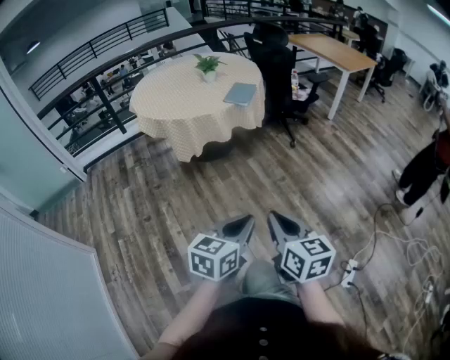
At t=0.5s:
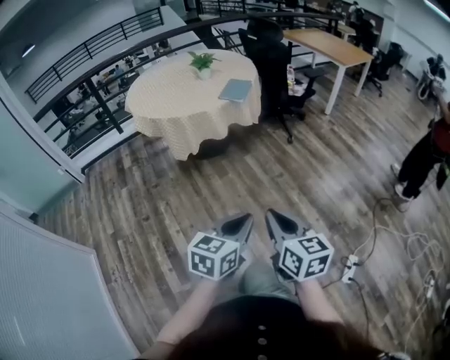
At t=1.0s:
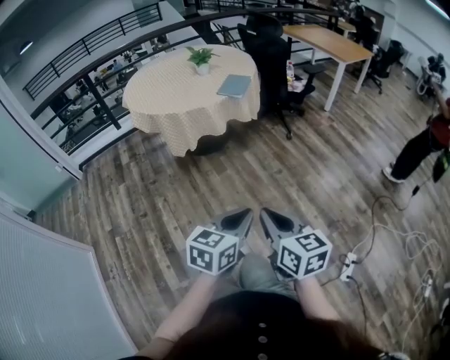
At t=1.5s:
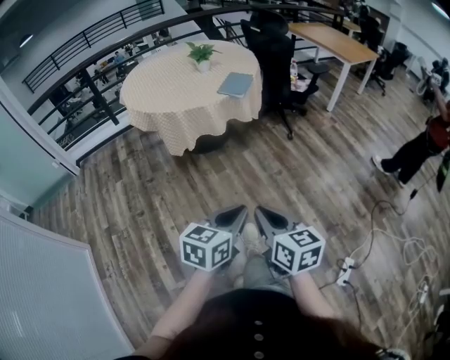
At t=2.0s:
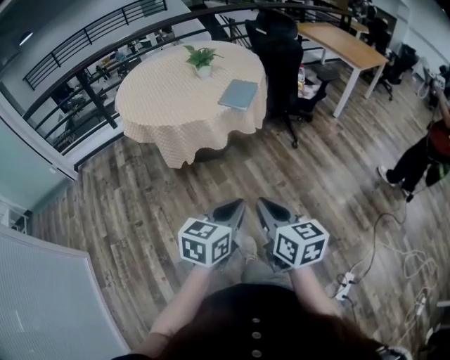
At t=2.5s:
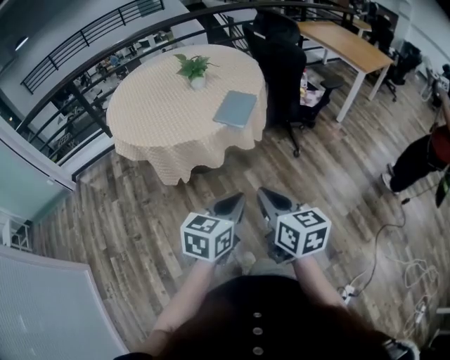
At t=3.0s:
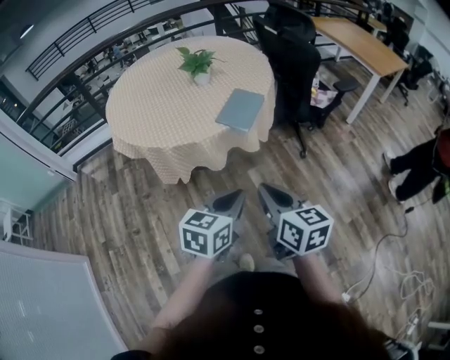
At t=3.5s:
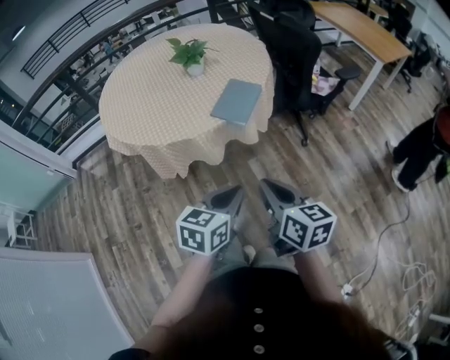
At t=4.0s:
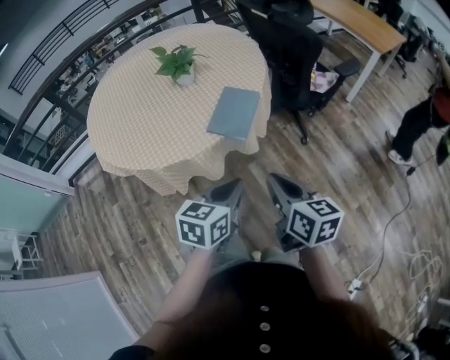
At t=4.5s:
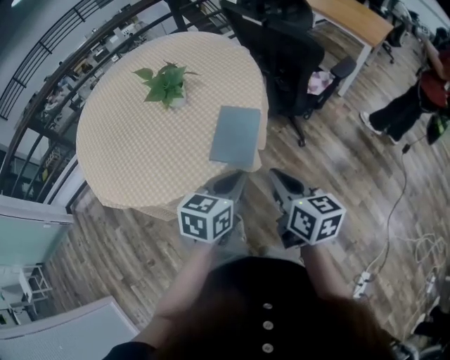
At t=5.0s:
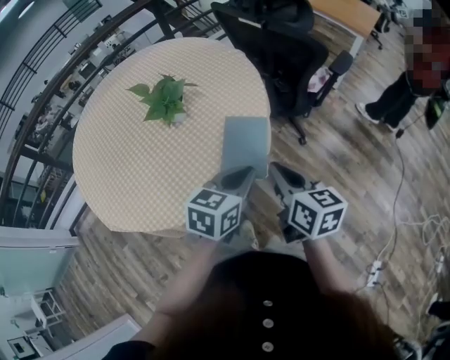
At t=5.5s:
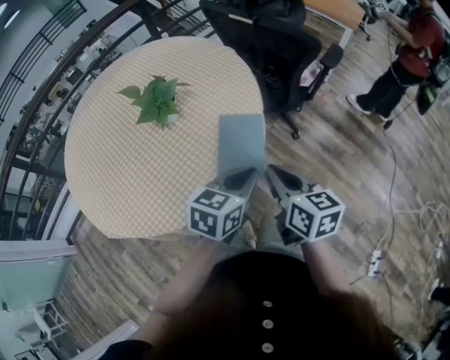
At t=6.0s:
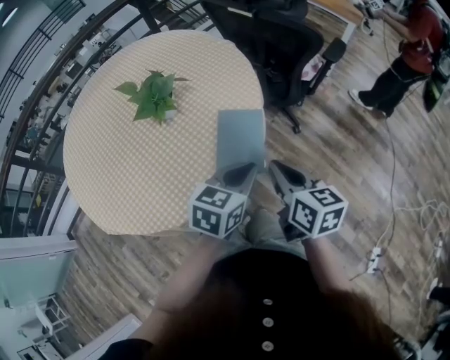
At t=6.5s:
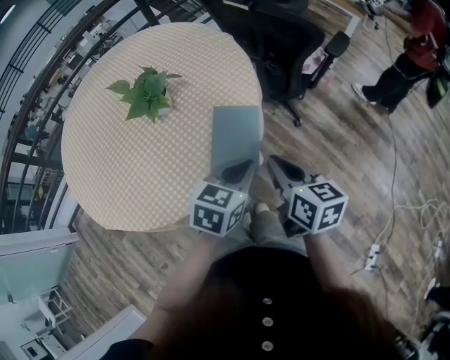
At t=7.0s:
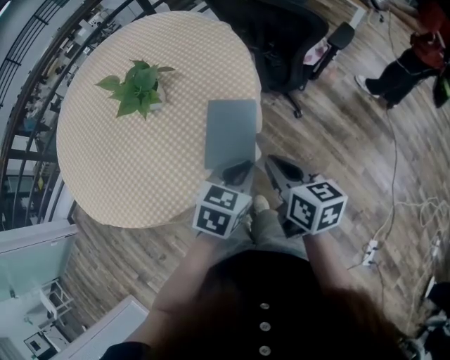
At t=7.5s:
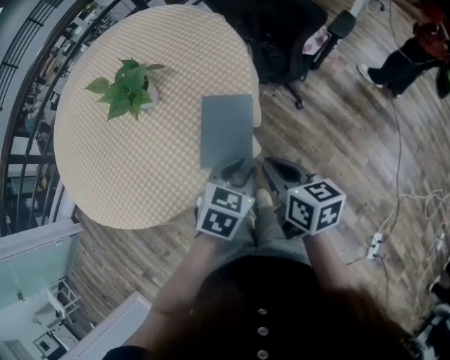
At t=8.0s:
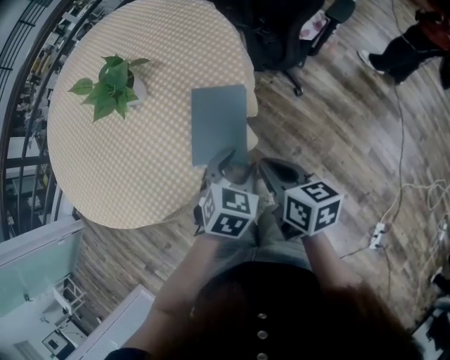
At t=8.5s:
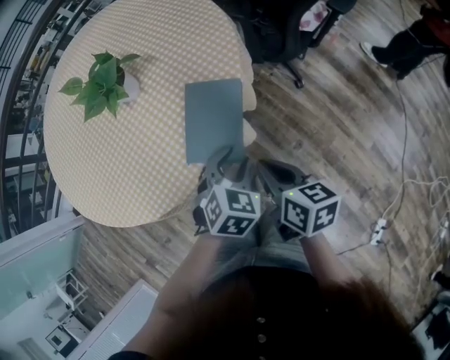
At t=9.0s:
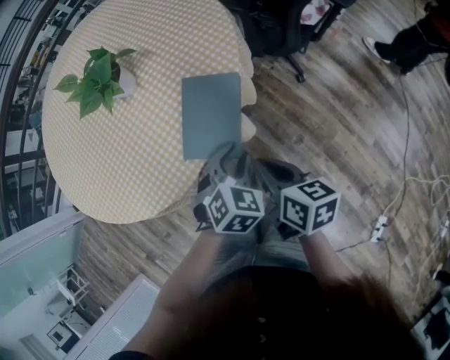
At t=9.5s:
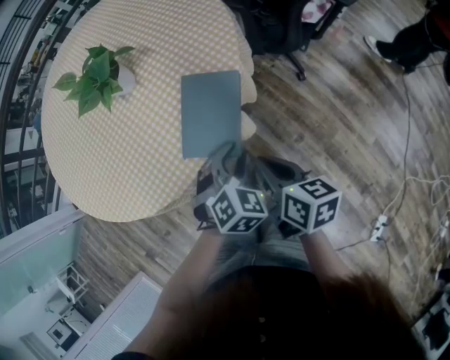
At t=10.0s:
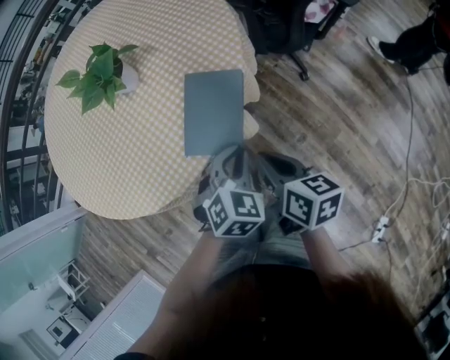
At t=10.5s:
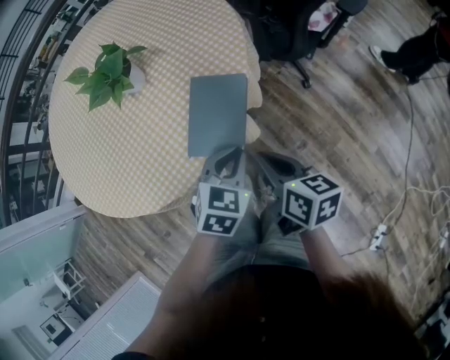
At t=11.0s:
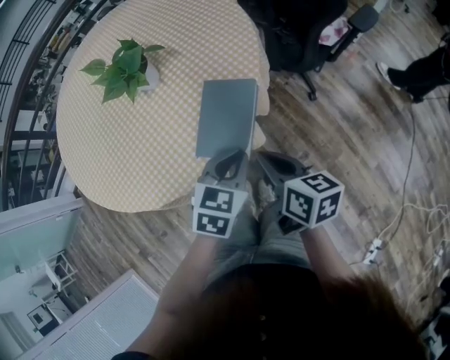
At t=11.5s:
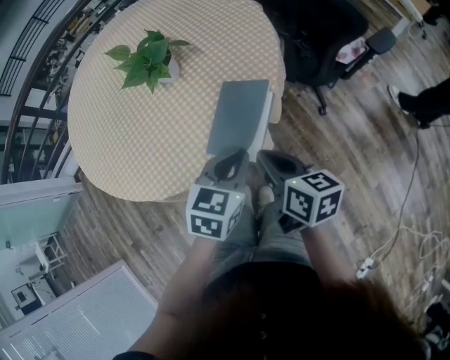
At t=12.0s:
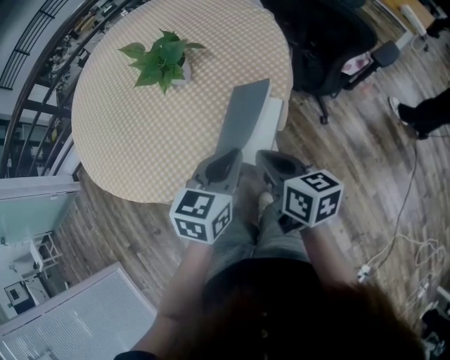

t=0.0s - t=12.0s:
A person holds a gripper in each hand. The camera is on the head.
t=0.0s - t=2.0s: The grippers both shift forward by about 20 cm.
t=2.0s - t=4.0s: Both grippers move forward, some 35 cm.
t=4.0s - t=6.0s: The left gripper heads forward, covering approximately 15 cm, and rotates about 20 degrees. Meanwhile the right gripper travels forward and to the left by approximately 15 cm.
t=6.0s - t=8.0s: Both grippers travel together downward, approximately 10 cm. The left gripper swivels roughly 30 degrees, and opens up.
t=8.0s - t=10.0s: The left gripper closes up.
t=10.0s - t=12.0s: The two grippers go roughly 10 cm upward and to the left. The left gripper changes its angle by some 40 degrees.

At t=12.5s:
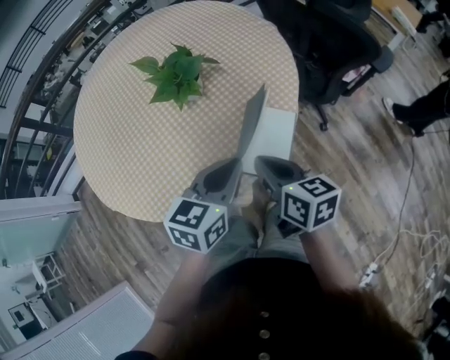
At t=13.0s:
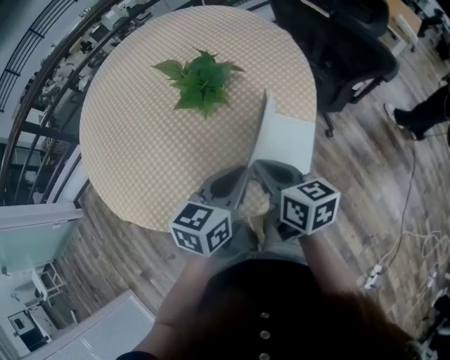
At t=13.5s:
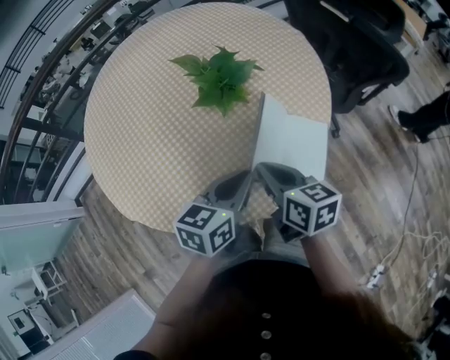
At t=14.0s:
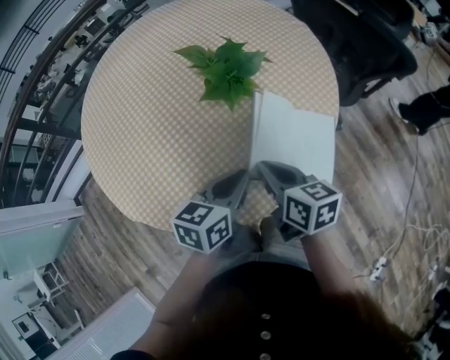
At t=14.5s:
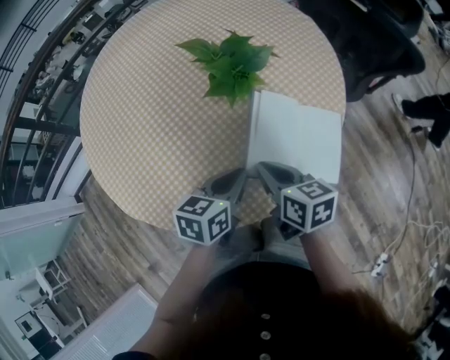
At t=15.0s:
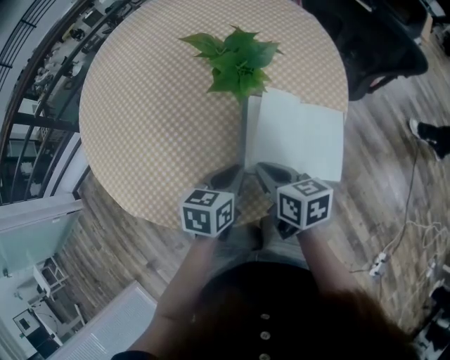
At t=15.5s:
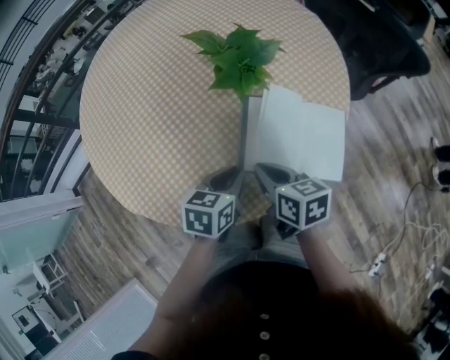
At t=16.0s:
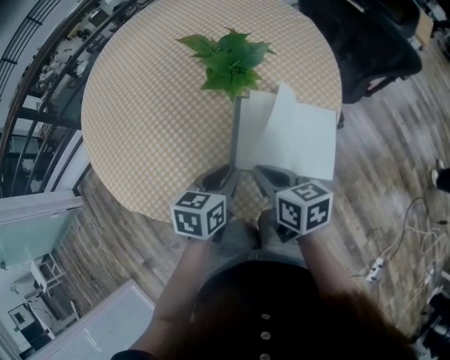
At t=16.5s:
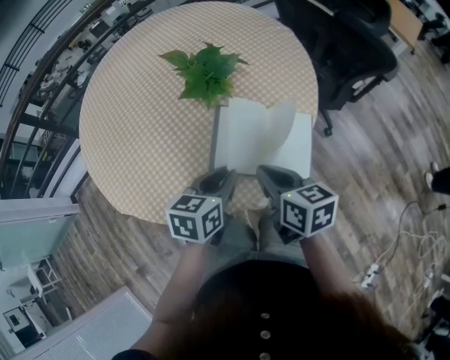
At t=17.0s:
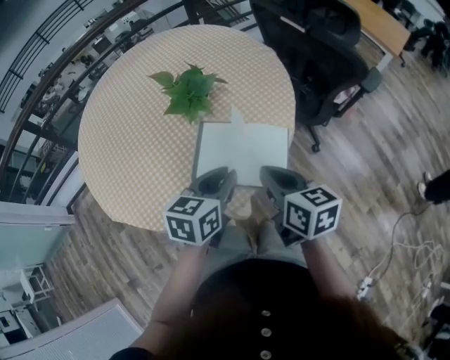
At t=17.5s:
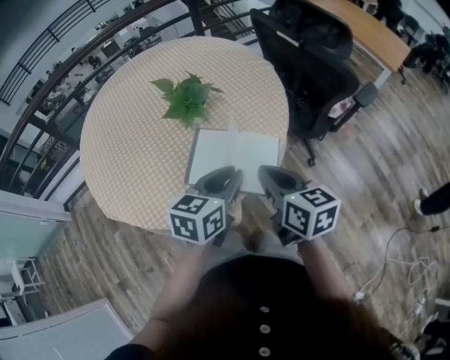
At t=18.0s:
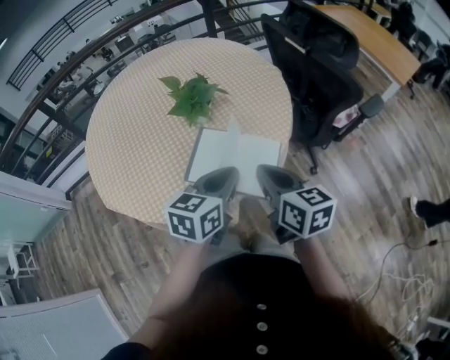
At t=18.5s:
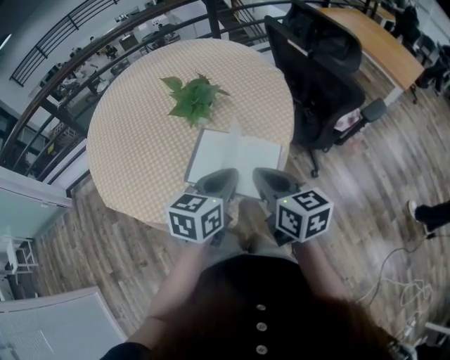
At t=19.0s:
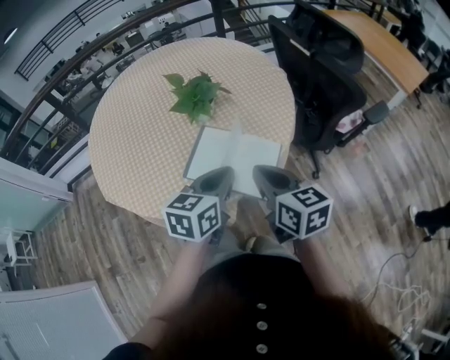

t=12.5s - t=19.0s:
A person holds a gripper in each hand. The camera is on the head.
t=12.5s - t=14.5s: The left gripper is displaced to the left and downward by roughly 15 cm; the right gripper travels to the left by approximately 15 cm.
t=14.5s - t=17.0s: Both grippers move to the right and upward, about 15 cm.
t=17.0s - t=19.0s: The left gripper moves approximately 5 cm.

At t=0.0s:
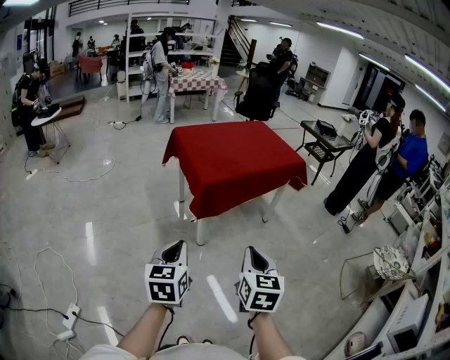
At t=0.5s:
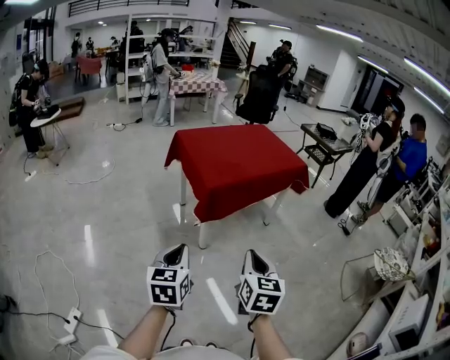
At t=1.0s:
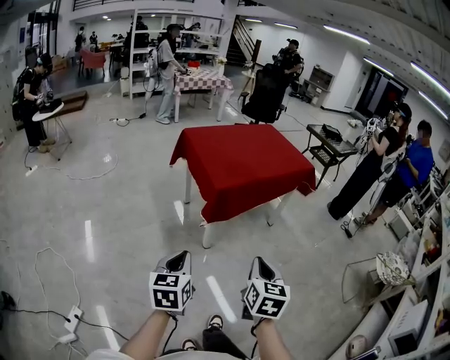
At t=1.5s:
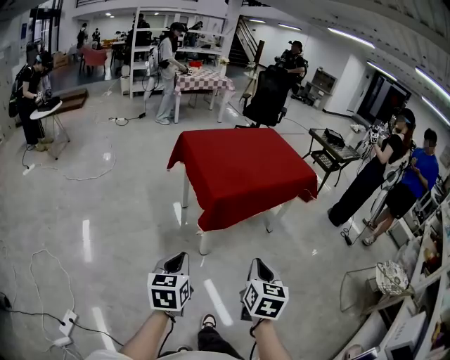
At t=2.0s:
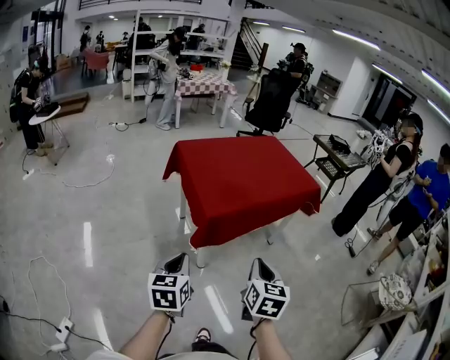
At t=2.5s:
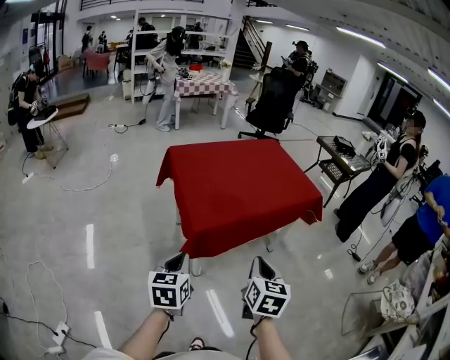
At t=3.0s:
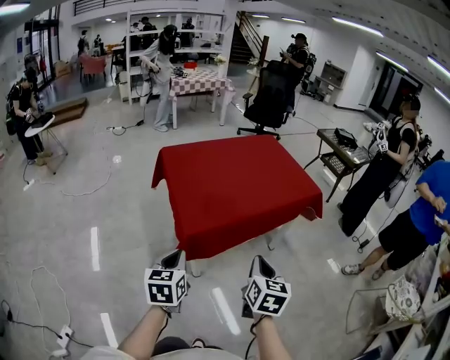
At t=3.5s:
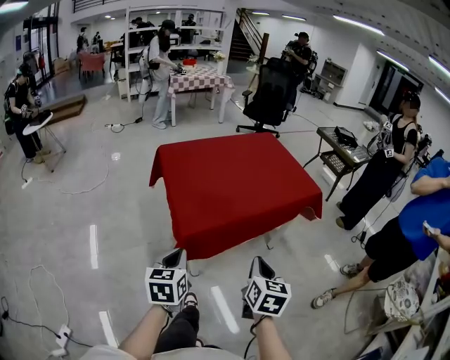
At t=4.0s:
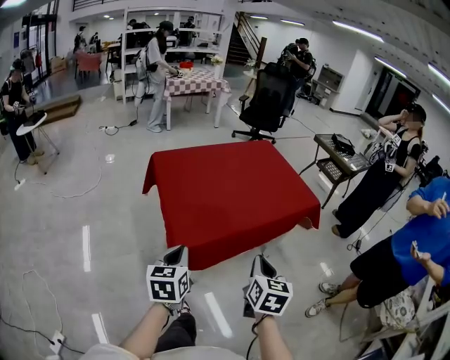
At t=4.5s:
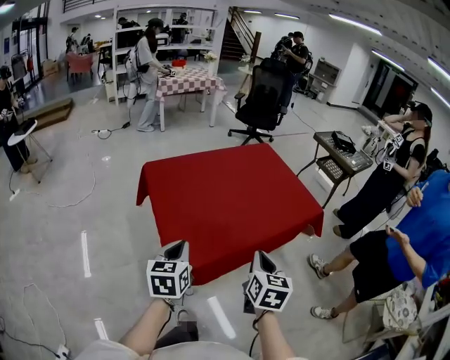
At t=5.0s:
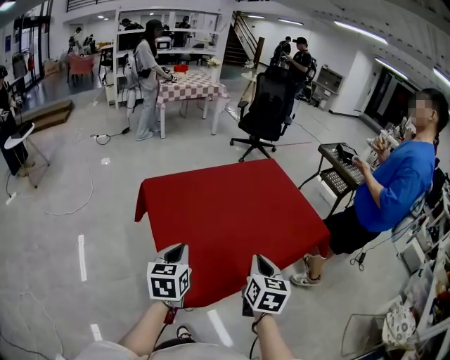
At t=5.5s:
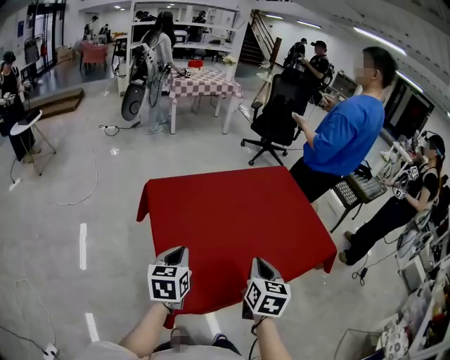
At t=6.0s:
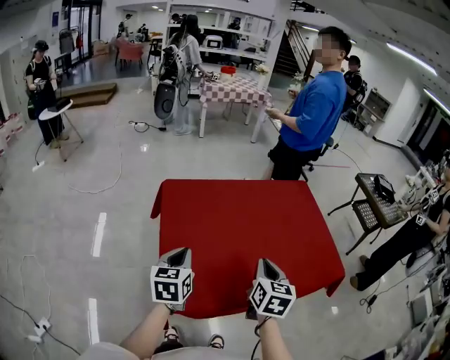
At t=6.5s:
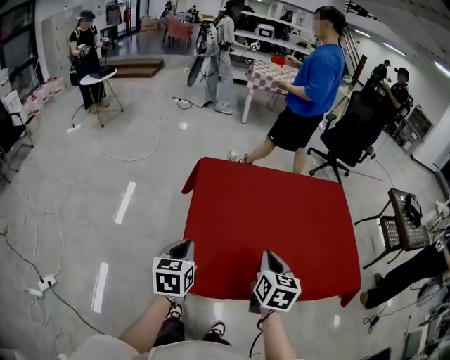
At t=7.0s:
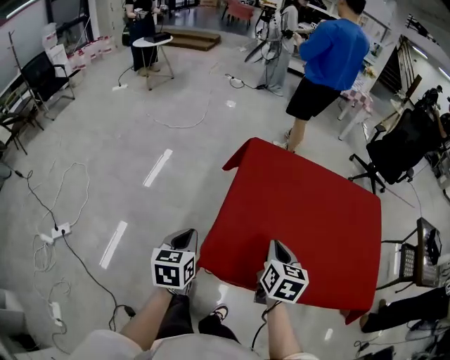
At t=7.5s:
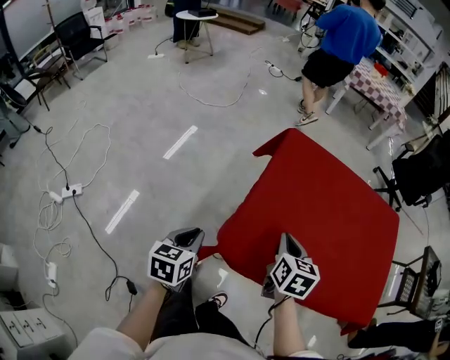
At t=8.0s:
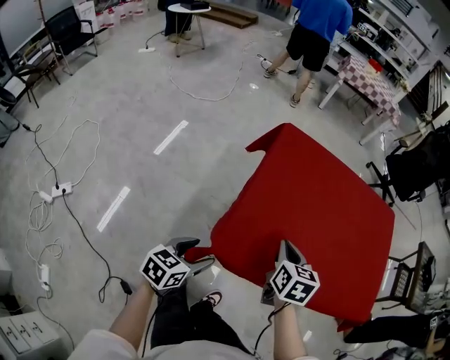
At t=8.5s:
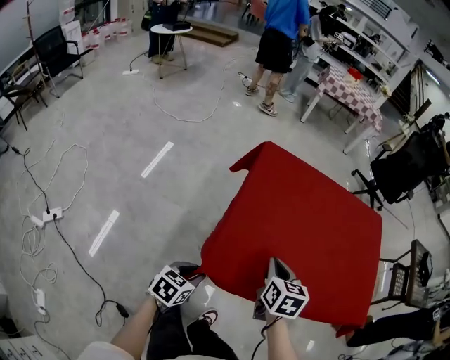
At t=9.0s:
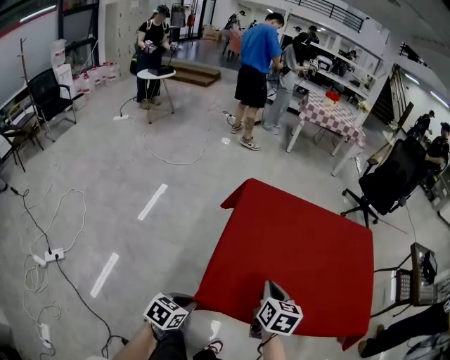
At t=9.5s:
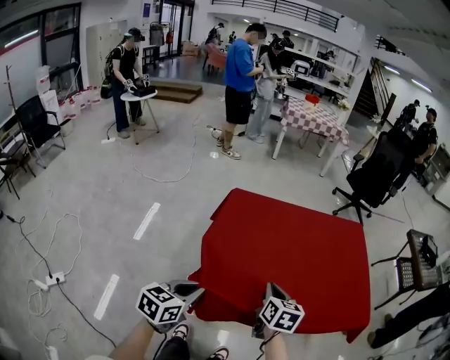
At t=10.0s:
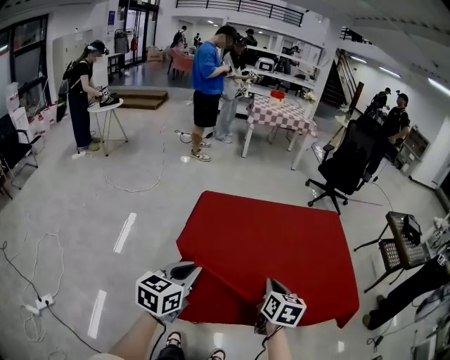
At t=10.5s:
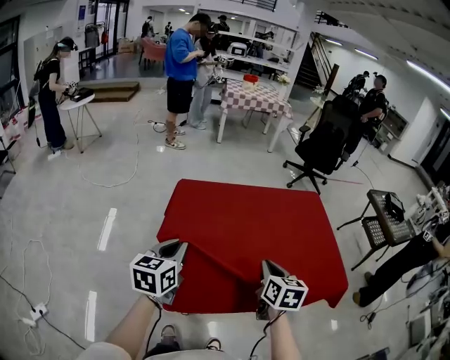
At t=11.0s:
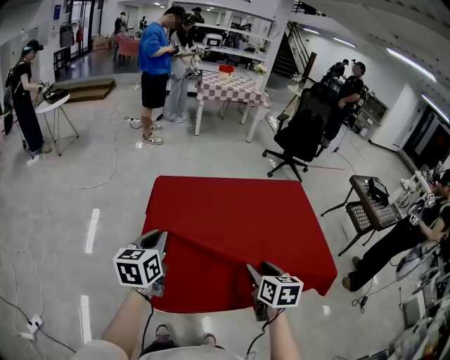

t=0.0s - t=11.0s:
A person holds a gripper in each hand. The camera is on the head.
t=0.0s - t=2.0s: The two grippers go roughly 15 cm forward.
t=2.0s - t=3.5s: Both grippers travel together forward and to the right, roughly 15 cm.
t=3.5s - t=5.5s: The two grippers go about 30 cm forward.
t=5.5s - t=7.5s: The left gripper changes place by roughly 25 cm, and turns by some 40 degrees, while the right gripper shifts by approximately 15 cm, and turns by approximately 40 degrees.
t=7.5s - t=9.0s: The left gripper is displaced to the right by roughly 5 cm, turns by about 30 degrees, and opens, then closes once more.
t=9.0s - t=11.0s: The left gripper is displaced forward and upward by approximately 30 cm, and swivels about 30 degrees. The right gripper moves to the right, approximately 15 cm, and opens its fingers.
